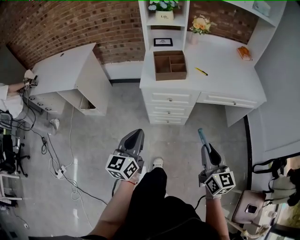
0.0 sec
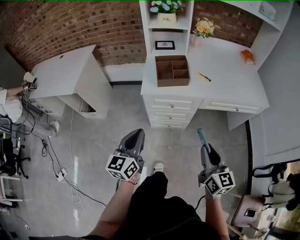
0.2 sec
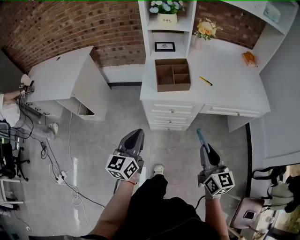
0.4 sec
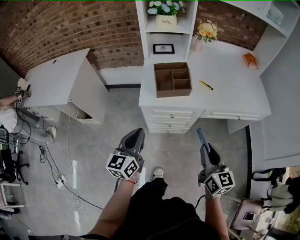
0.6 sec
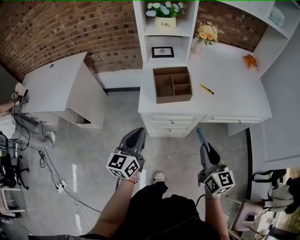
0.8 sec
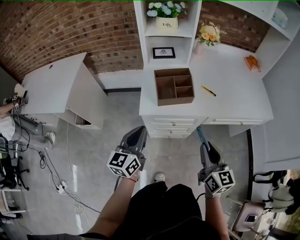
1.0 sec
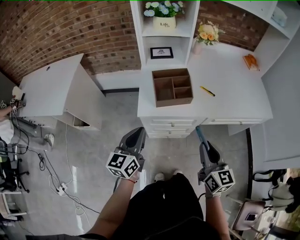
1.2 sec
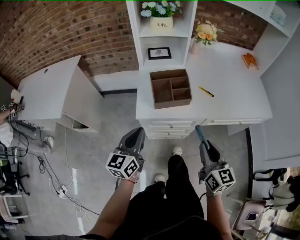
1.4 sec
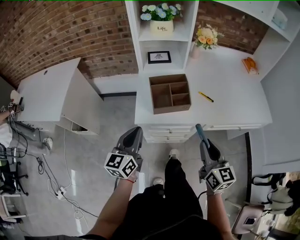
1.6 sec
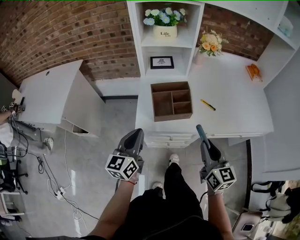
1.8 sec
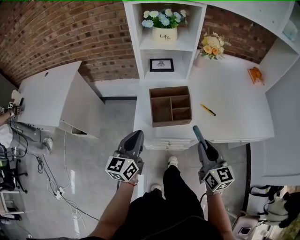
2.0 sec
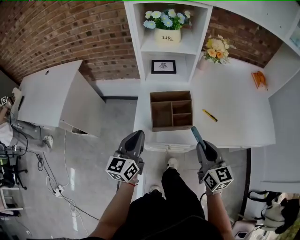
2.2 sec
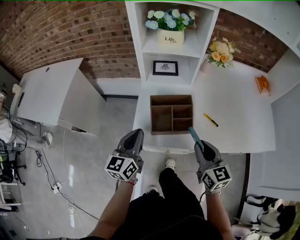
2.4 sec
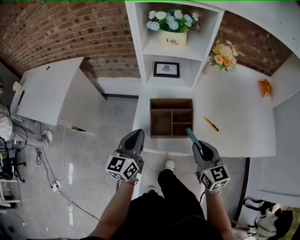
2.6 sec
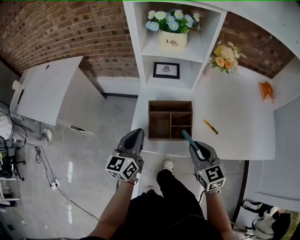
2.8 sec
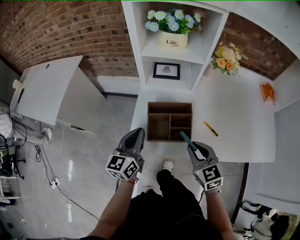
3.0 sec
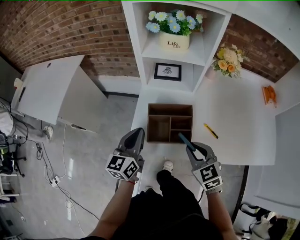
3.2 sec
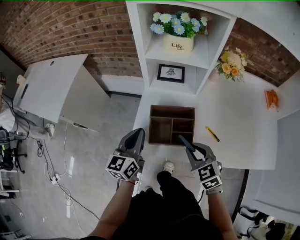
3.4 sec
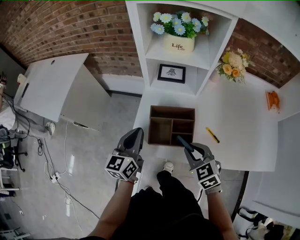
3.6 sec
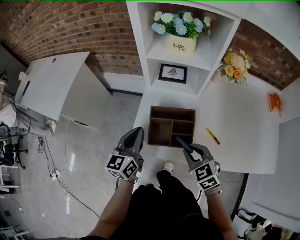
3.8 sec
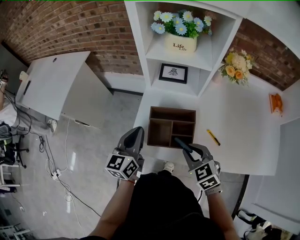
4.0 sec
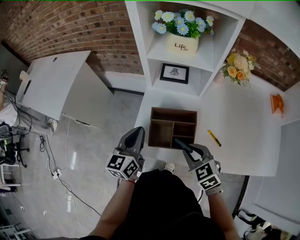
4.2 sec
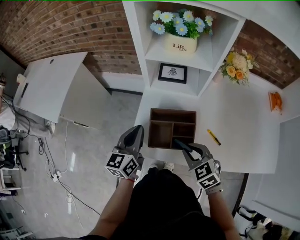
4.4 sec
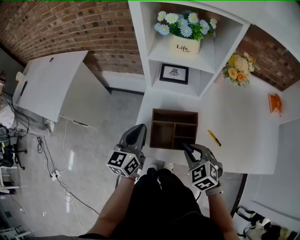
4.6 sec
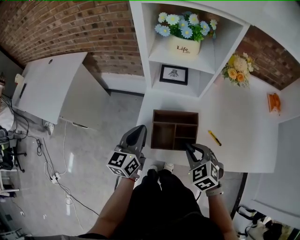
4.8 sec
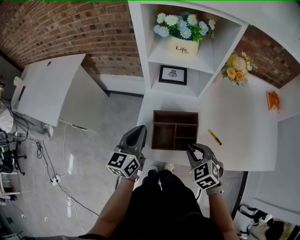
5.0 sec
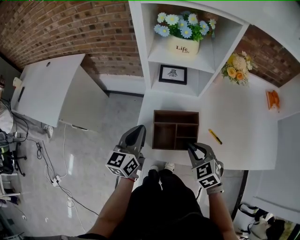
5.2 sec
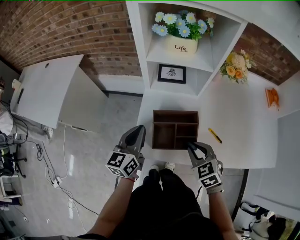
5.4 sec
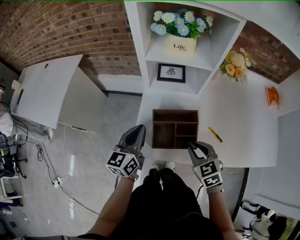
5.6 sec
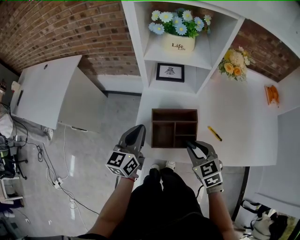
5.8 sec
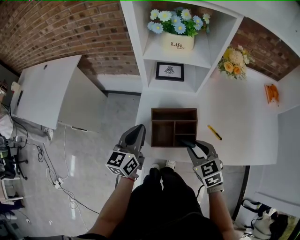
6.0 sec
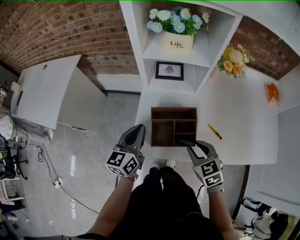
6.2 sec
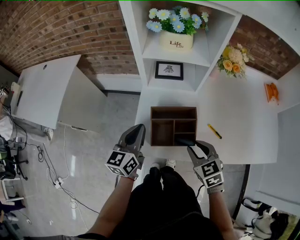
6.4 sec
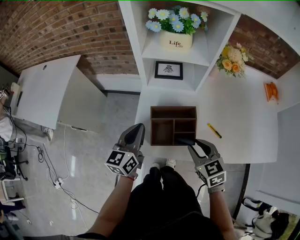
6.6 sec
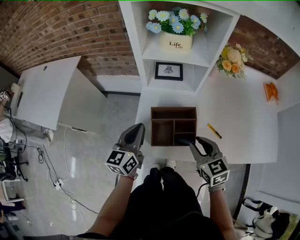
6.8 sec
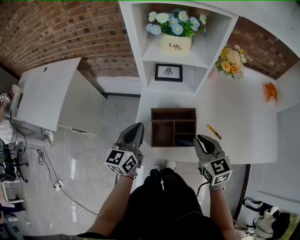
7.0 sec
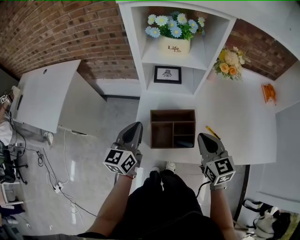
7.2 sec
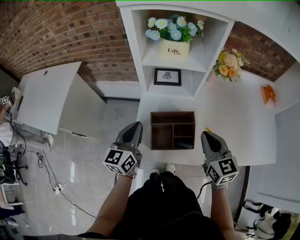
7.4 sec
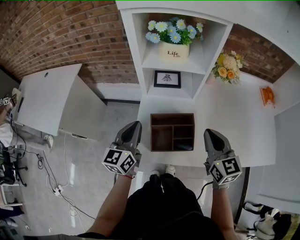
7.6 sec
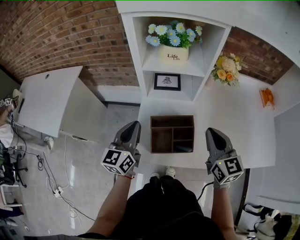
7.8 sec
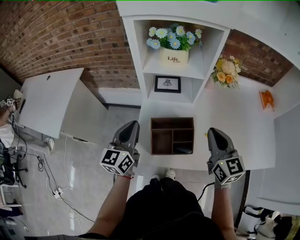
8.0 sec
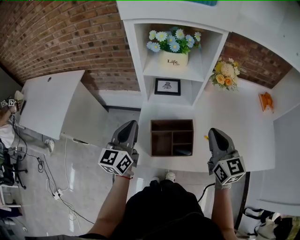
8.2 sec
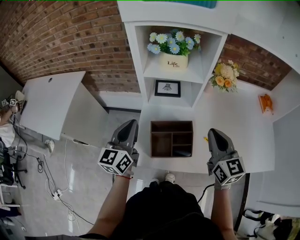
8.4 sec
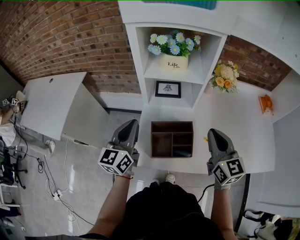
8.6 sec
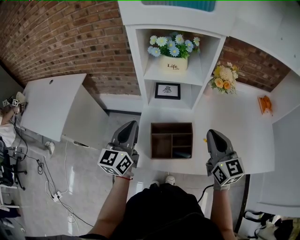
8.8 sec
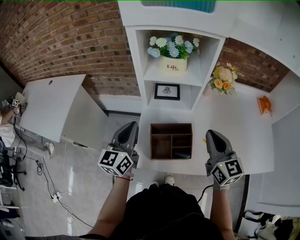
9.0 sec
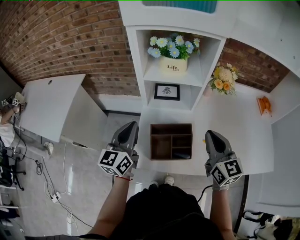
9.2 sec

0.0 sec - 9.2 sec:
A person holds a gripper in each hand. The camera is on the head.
0.0 sec - 1.6 sec: The grippers both shift forward by some 25 cm.
1.6 sec - 3.0 sec: The grippers both shift forward by about 15 cm. The right gripper swivels roughly 30 degrees.
3.0 sec - 4.6 sec: The right gripper swivels approximately 30 degrees.
4.6 sec - 6.2 sec: The right gripper turns by about 20 degrees.
6.2 sec - 7.6 sec: The right gripper heads upward and forward, covering roughly 15 cm, rotates approximately 30 degrees, and closes its fingers.
7.6 sec - 9.2 sec: The left gripper heads upward, covering about 5 cm.

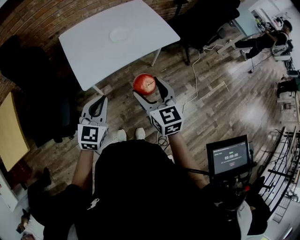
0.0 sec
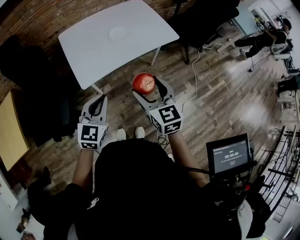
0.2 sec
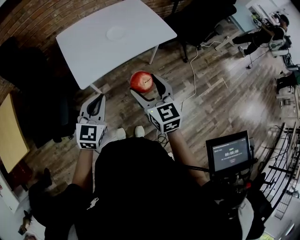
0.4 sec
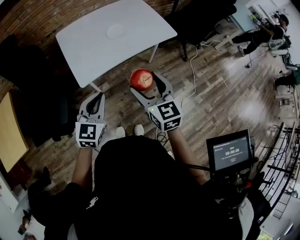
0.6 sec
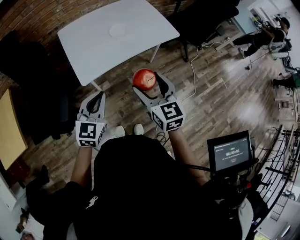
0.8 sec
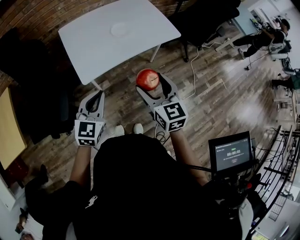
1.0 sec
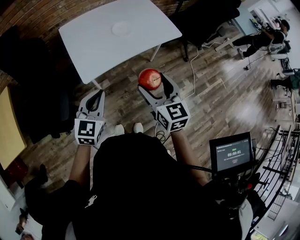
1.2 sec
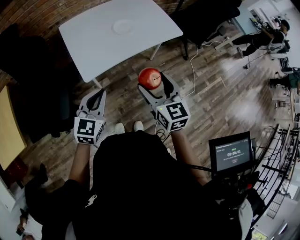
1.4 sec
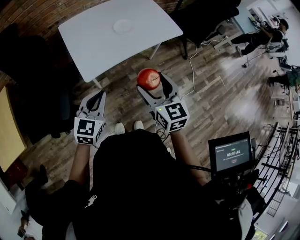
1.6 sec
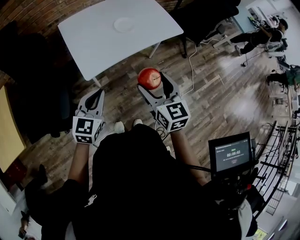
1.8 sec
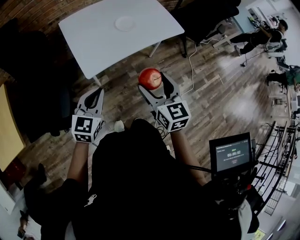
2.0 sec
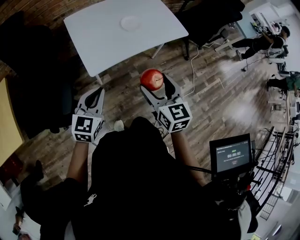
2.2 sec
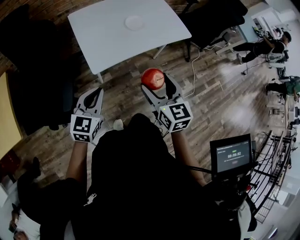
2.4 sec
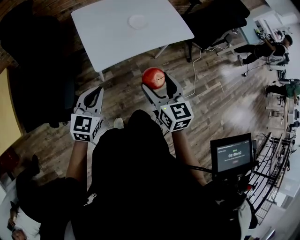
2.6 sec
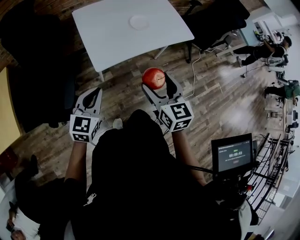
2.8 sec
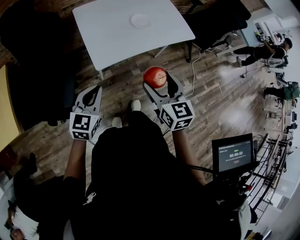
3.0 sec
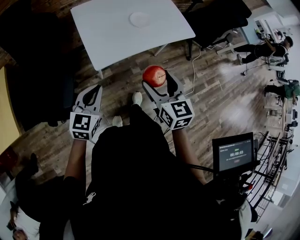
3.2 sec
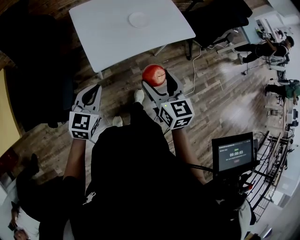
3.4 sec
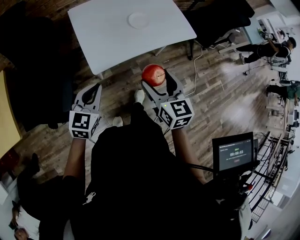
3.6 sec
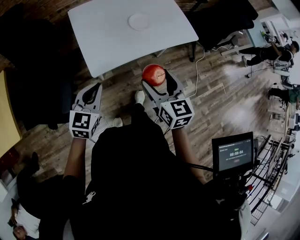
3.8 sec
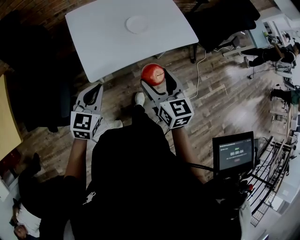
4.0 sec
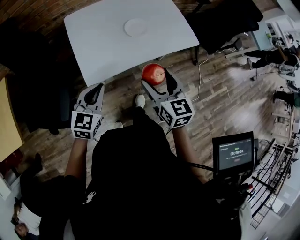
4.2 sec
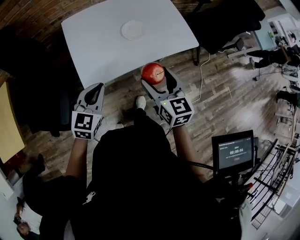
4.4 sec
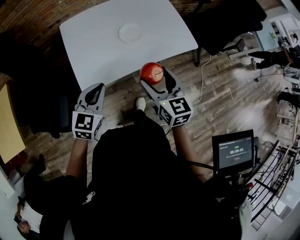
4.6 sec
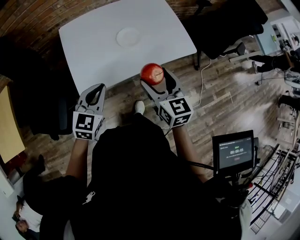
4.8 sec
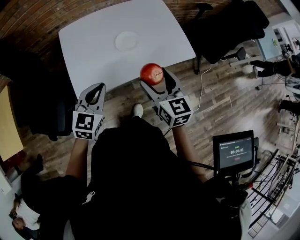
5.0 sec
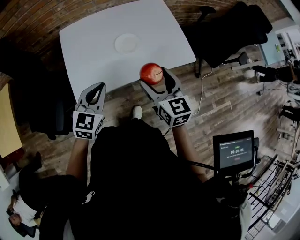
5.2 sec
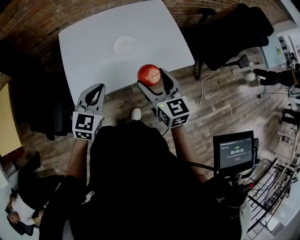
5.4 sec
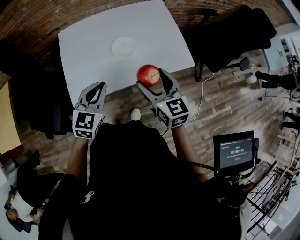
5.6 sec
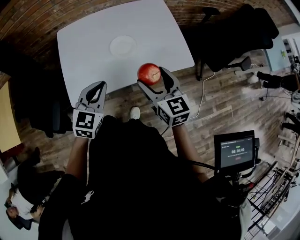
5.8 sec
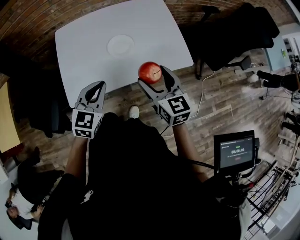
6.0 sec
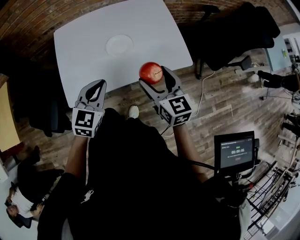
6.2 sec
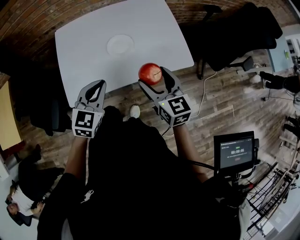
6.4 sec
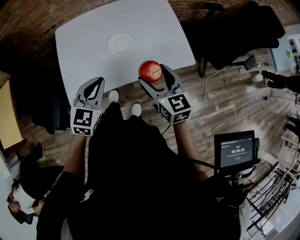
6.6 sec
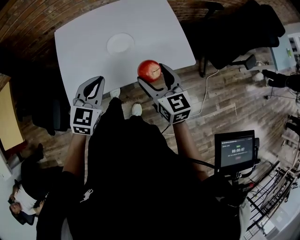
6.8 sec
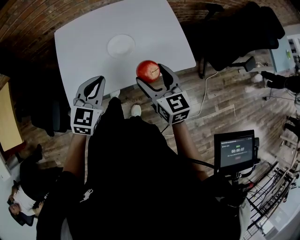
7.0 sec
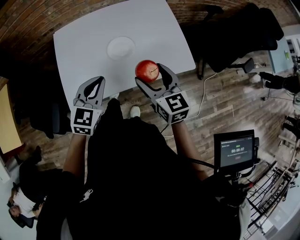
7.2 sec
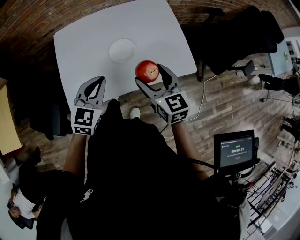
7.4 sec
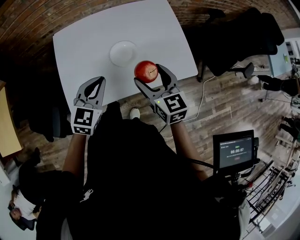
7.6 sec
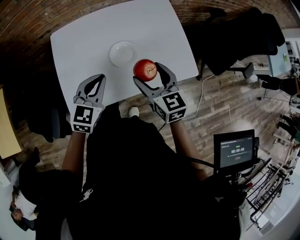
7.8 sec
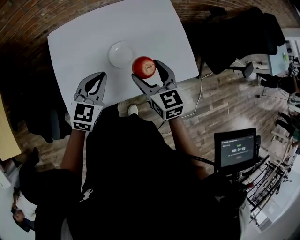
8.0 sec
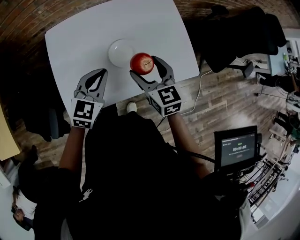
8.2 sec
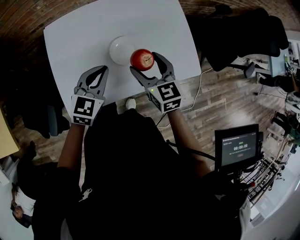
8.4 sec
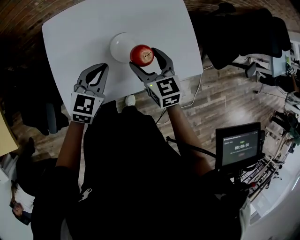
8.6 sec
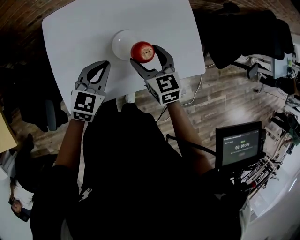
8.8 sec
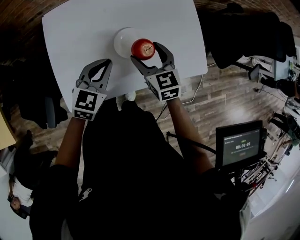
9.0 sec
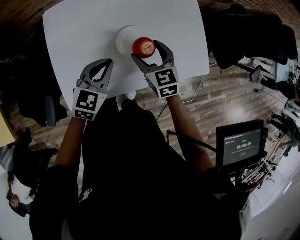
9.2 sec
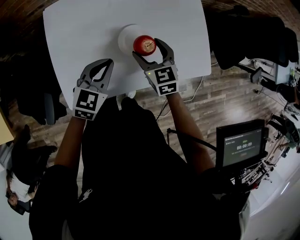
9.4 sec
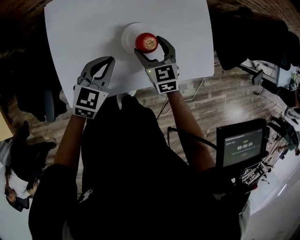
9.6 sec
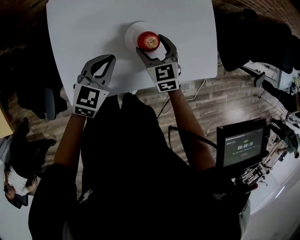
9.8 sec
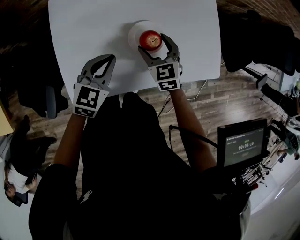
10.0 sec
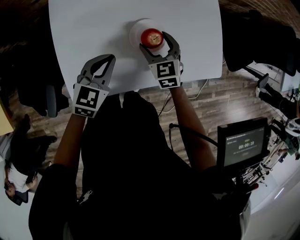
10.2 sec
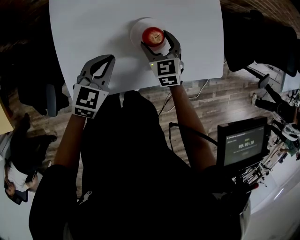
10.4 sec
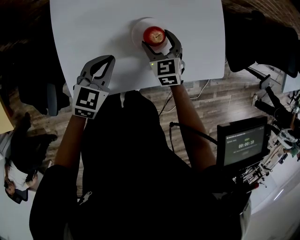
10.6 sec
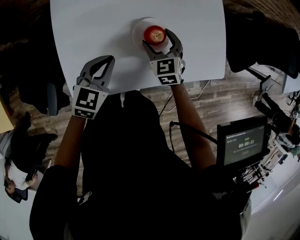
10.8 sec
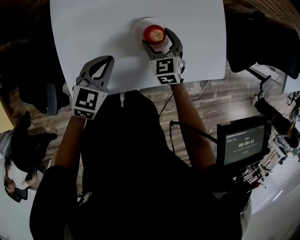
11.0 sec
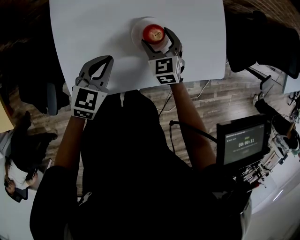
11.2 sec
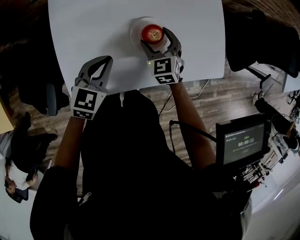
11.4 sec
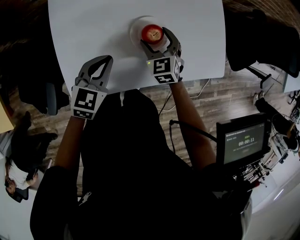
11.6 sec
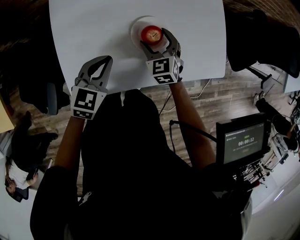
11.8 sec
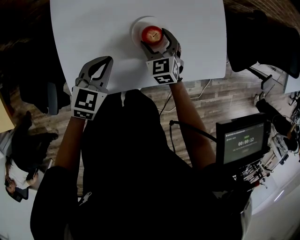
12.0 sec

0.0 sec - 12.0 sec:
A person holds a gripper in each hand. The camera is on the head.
0.0 sec - 1.6 sec: The left gripper heads to the left, covering roughly 5 cm, while the right gripper changes place by roughly 5 cm.
1.6 sec - 3.0 sec: The left gripper travels to the left by some 10 cm.
3.0 sec - 4.4 sec: The two grippers go about 20 cm forward and to the right.
4.4 sec - 6.0 sec: The right gripper shifts approximately 15 cm forward and to the right, while the left gripper moves to the right and forward, approximately 15 cm.
6.0 sec - 7.6 sec: The two grippers go about 10 cm forward.
7.6 sec - 9.0 sec: The left gripper changes place by some 5 cm. The right gripper goes about 10 cm downward, forward and to the left.
9.0 sec - 10.4 sec: The left gripper heads to the left and downward, covering roughly 5 cm. Meanwhile the right gripper shifts some 10 cm downward.
10.4 sec - 12.0 sec: The grippers stay close to where they were, moving slightly.

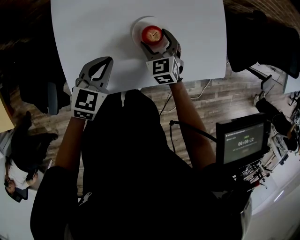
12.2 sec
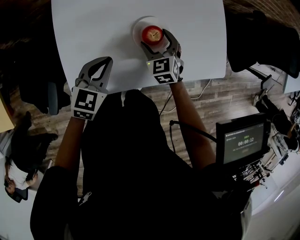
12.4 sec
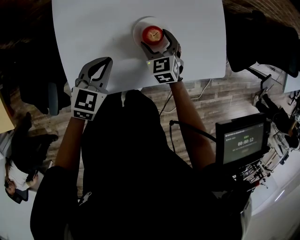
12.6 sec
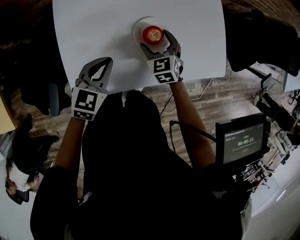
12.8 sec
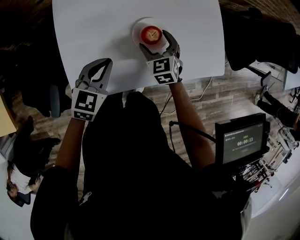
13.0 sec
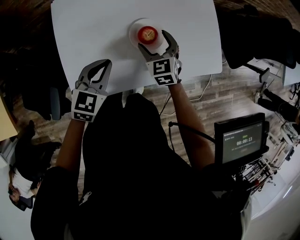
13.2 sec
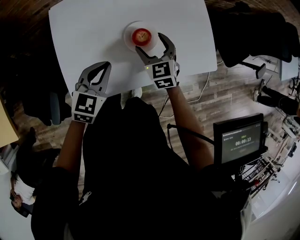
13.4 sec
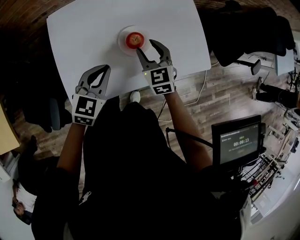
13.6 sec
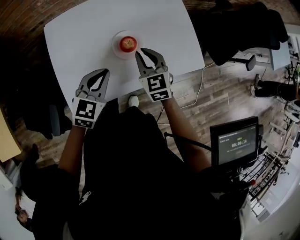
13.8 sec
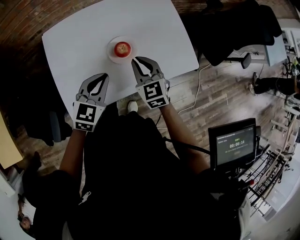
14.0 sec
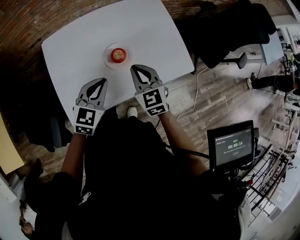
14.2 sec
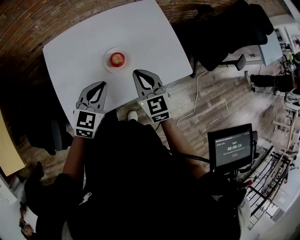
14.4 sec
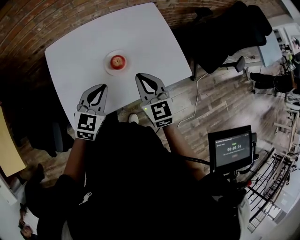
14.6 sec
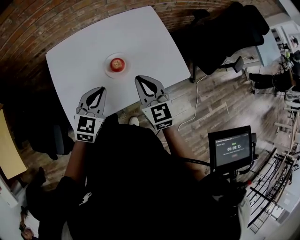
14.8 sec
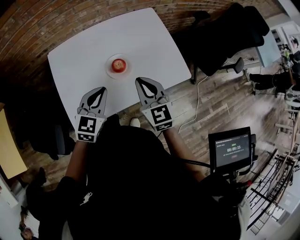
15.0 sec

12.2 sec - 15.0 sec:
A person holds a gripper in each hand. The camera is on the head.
12.2 sec - 13.6 sec: The right gripper is displaced upward by about 10 cm, and closes up. Meanwhile the left gripper goes about 5 cm upward.
13.6 sec - 15.0 sec: The left gripper heads upward and to the right, covering about 10 cm, while the right gripper heads upward, backward and to the right, covering approximately 15 cm, and closes.
